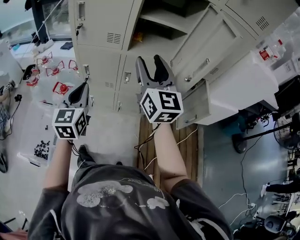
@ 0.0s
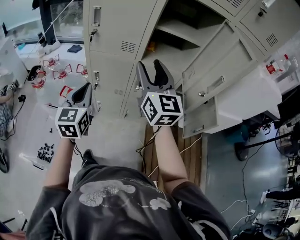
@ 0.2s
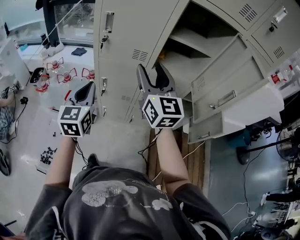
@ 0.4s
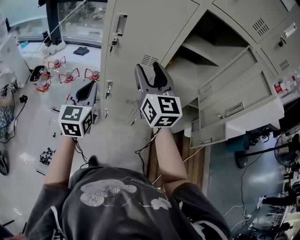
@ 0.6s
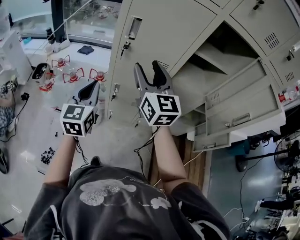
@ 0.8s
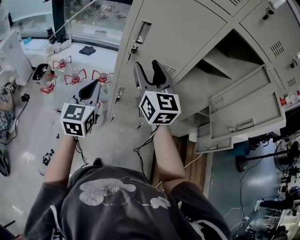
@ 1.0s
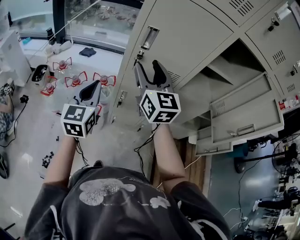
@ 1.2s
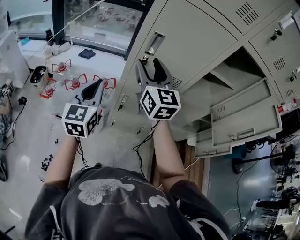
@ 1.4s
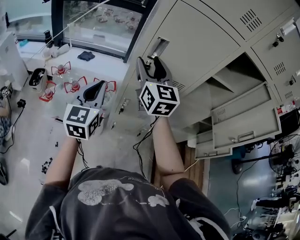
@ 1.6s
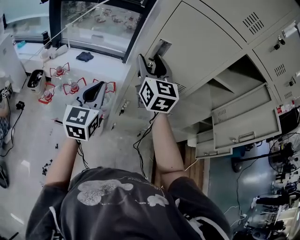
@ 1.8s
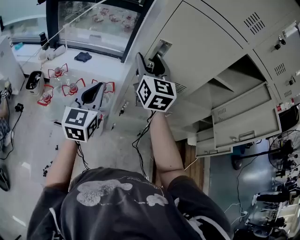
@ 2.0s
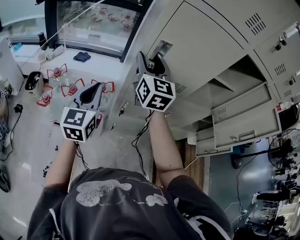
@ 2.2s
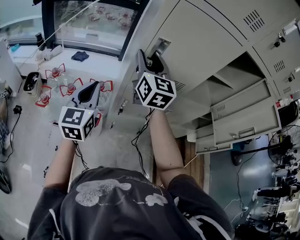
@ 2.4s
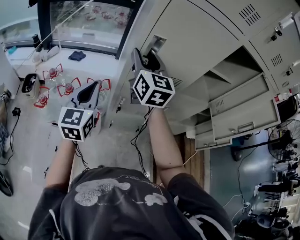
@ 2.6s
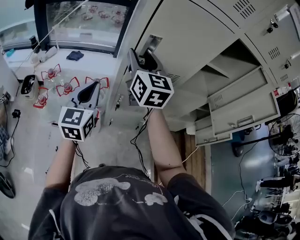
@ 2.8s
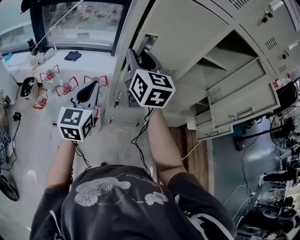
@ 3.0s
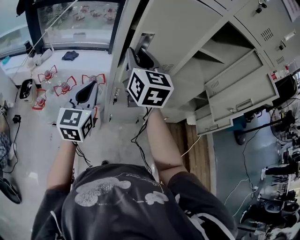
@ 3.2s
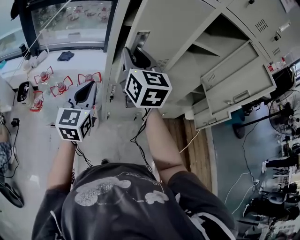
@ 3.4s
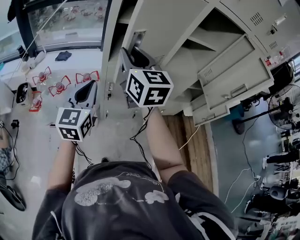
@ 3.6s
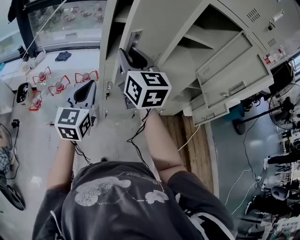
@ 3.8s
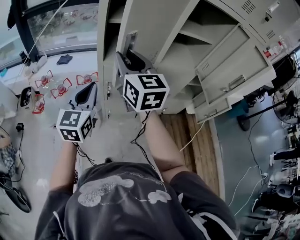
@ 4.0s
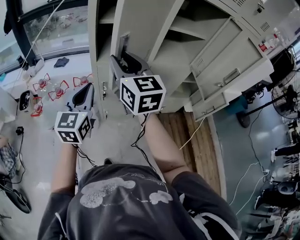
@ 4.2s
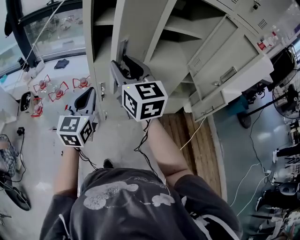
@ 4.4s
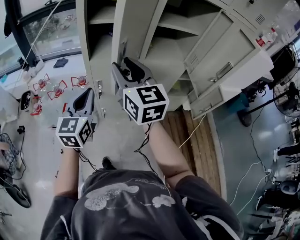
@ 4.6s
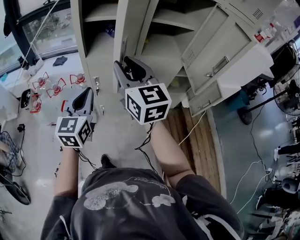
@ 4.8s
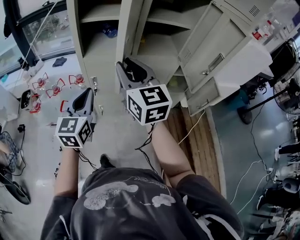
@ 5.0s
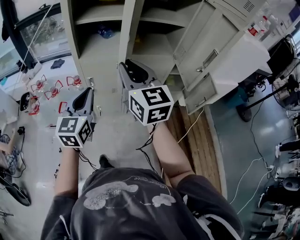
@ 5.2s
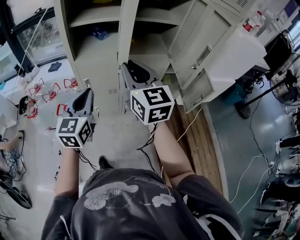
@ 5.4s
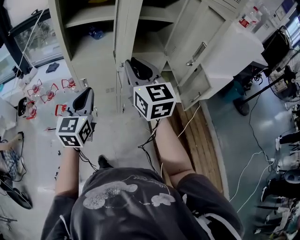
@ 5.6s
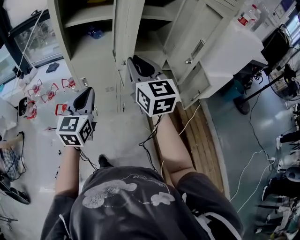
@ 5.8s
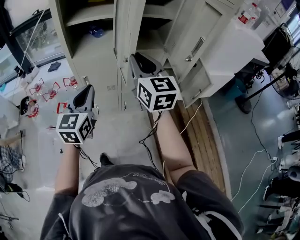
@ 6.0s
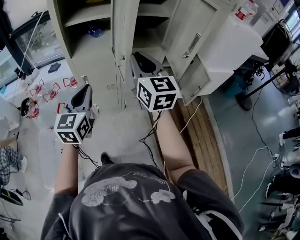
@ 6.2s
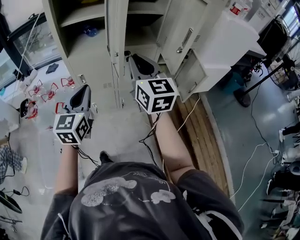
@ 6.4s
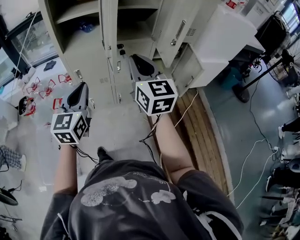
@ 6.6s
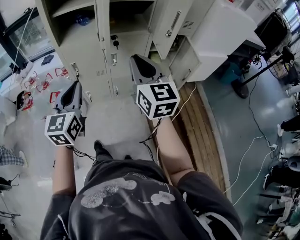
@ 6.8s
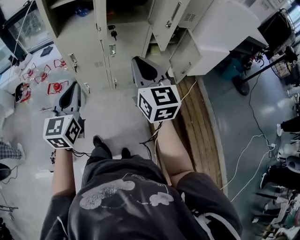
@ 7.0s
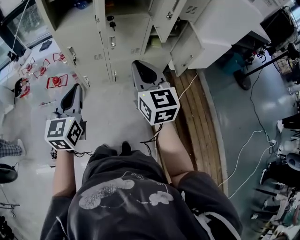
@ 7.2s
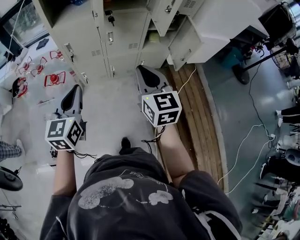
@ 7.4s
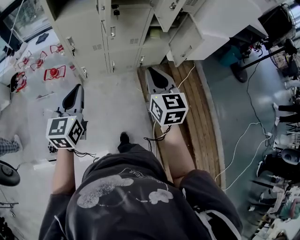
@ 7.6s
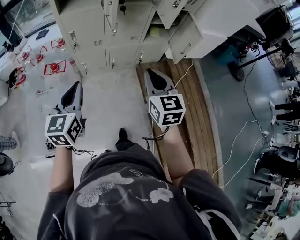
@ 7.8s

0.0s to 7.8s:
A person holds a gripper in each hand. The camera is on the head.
0.0s to 1.6s: Both grippers travel together to the left and forward, about 35 cm.
1.6s to 3.2s: The right gripper closes.
3.2s to 4.6s: The right gripper shifts approximately 15 cm backward and to the right. The left gripper moves to the right and backward, approximately 15 cm.
4.6s to 6.2s: The left gripper travels to the right and backward by about 10 cm. Meanwhile the right gripper shifts roughly 15 cm to the right.
6.2s to 7.8s: The left gripper travels backward and downward by roughly 20 cm; the right gripper shifts about 30 cm backward, downward and to the right.

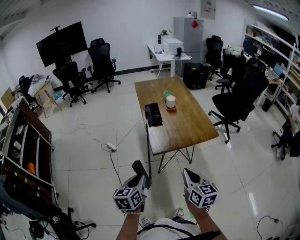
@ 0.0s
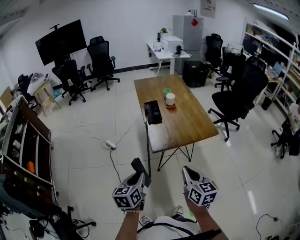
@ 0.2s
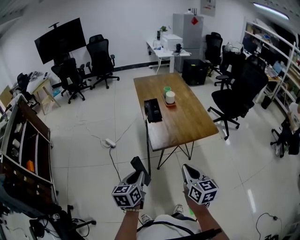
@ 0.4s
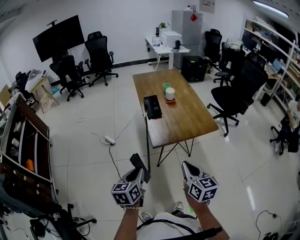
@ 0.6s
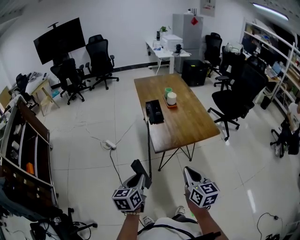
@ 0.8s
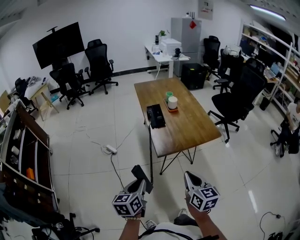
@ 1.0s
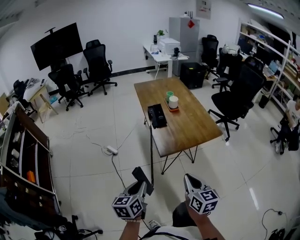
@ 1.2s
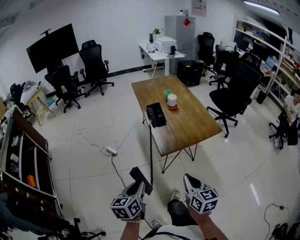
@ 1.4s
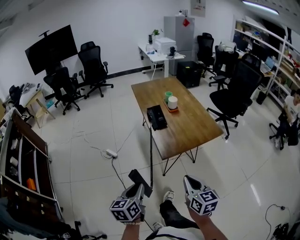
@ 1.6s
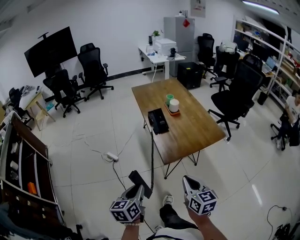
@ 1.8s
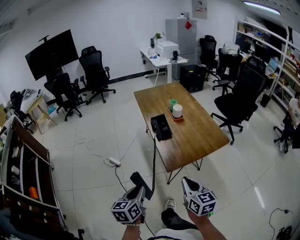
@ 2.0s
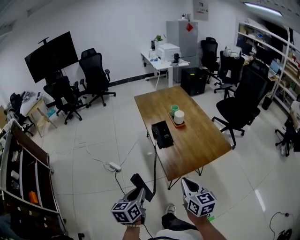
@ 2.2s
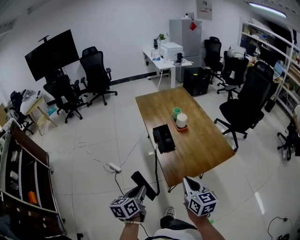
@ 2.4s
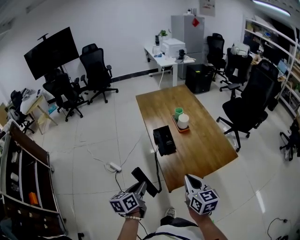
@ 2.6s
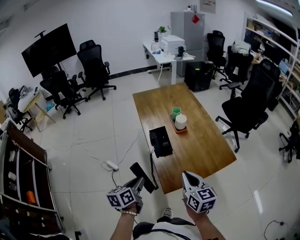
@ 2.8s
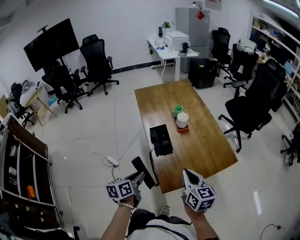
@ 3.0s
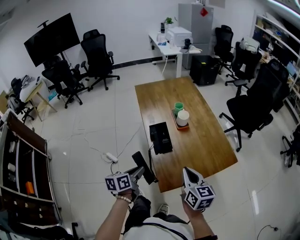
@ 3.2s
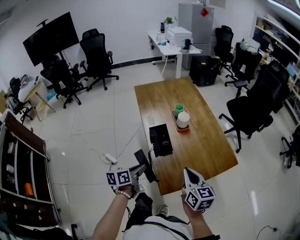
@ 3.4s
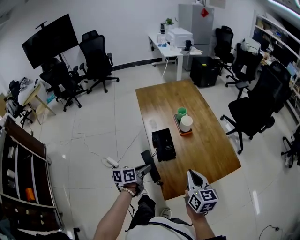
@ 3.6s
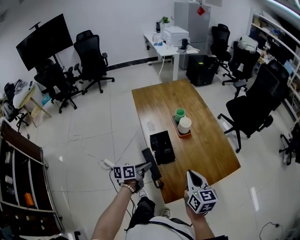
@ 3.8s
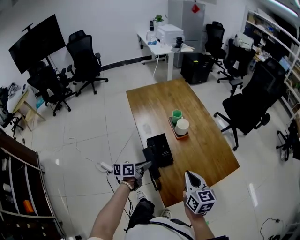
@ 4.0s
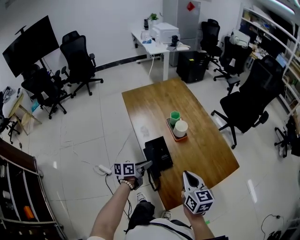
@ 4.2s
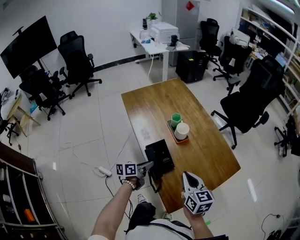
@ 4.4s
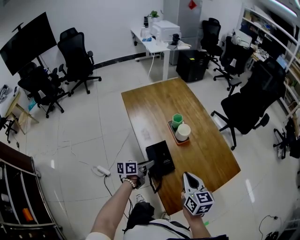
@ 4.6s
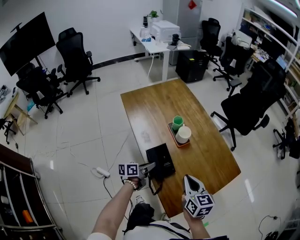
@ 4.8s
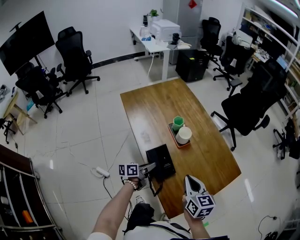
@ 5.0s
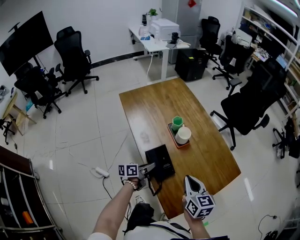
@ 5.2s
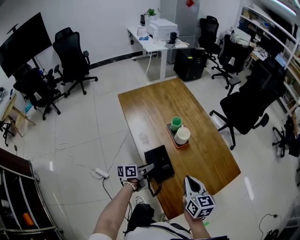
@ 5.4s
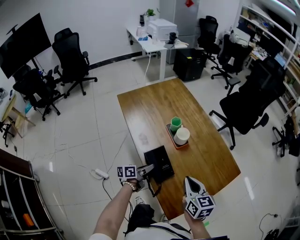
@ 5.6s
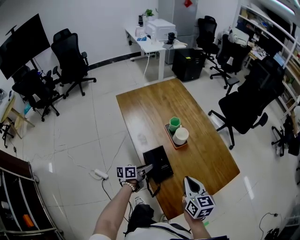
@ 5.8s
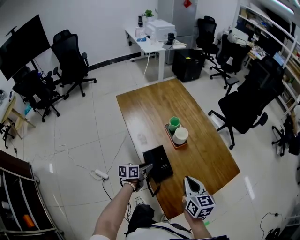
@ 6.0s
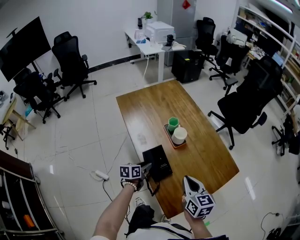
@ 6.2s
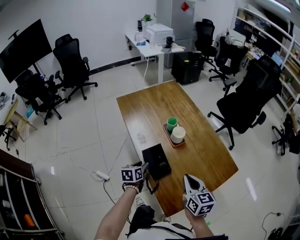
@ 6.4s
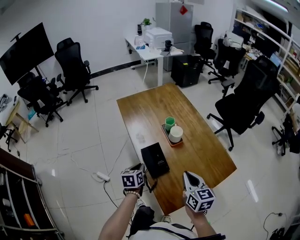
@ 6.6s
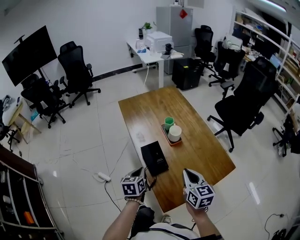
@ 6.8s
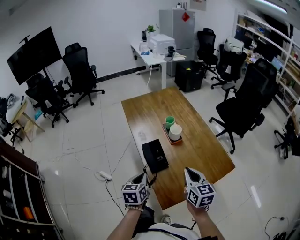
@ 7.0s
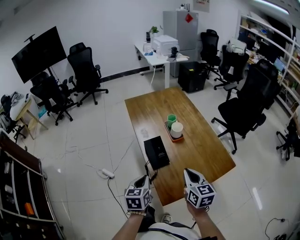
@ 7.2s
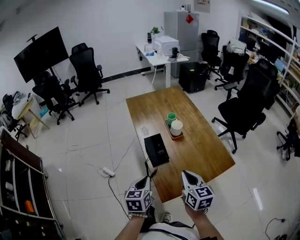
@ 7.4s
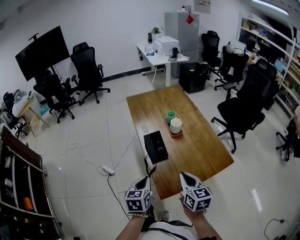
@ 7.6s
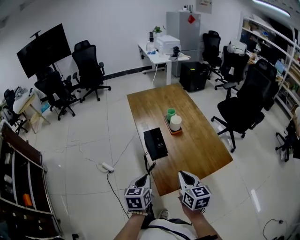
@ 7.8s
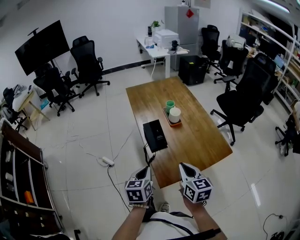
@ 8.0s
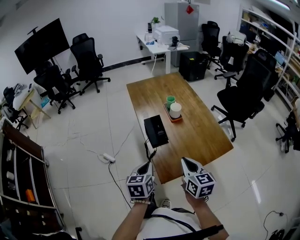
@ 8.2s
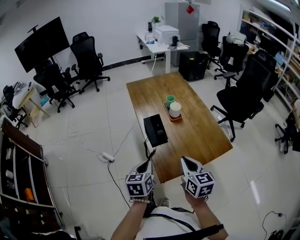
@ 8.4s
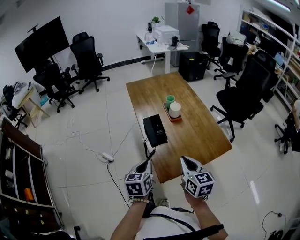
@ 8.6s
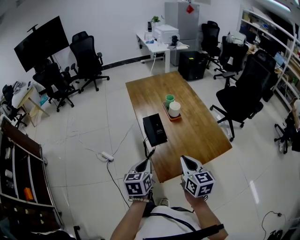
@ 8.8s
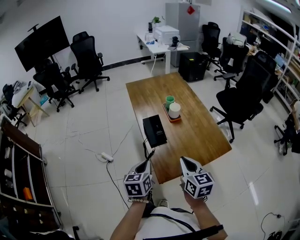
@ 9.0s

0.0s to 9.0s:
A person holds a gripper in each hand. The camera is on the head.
0.0s to 1.6s: The grippers both shift to the left by roughly 10 cm.
1.6s to 3.0s: The grippers both shift forward by approximately 30 cm.
3.0s to 4.4s: The right gripper goes approximately 10 cm forward. Meanwhile the left gripper heads forward and downward, covering approximately 25 cm, and changes its angle by some 30 degrees.
4.4s to 6.0s: The left gripper shifts by roughly 5 cm.
6.0s to 7.6s: The right gripper moves roughly 15 cm; the left gripper ends up some 30 cm from where it was, turns by approximately 40 degrees, and closes.
7.6s to 9.0s: The grippers move only a little.

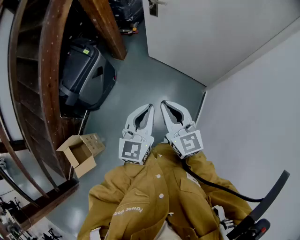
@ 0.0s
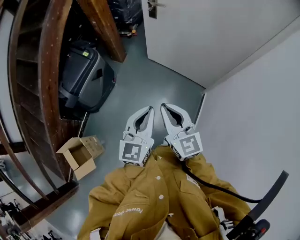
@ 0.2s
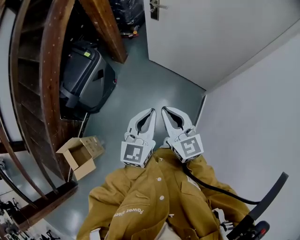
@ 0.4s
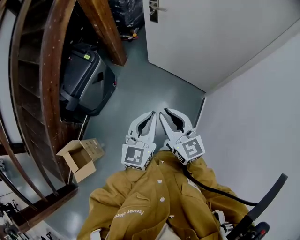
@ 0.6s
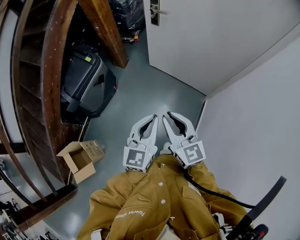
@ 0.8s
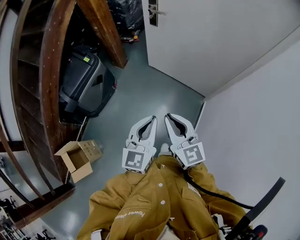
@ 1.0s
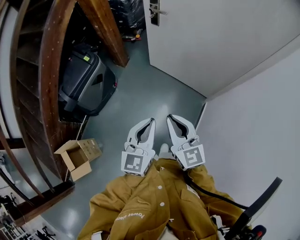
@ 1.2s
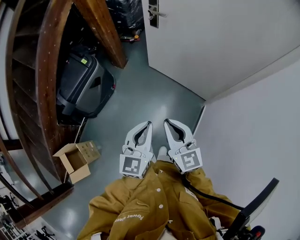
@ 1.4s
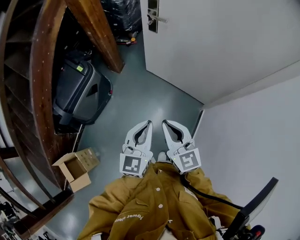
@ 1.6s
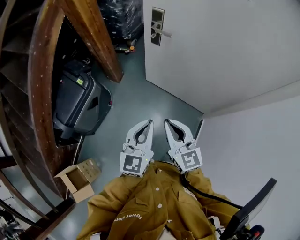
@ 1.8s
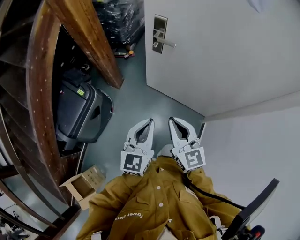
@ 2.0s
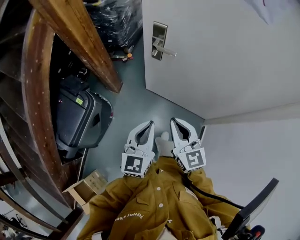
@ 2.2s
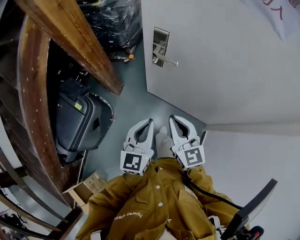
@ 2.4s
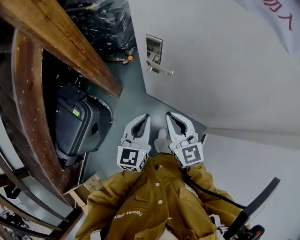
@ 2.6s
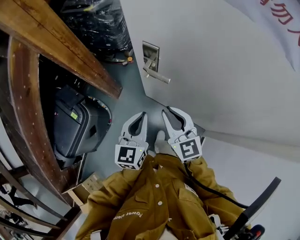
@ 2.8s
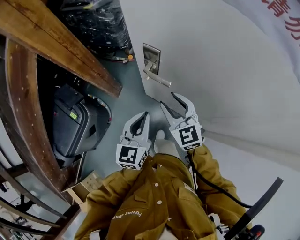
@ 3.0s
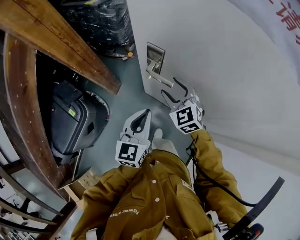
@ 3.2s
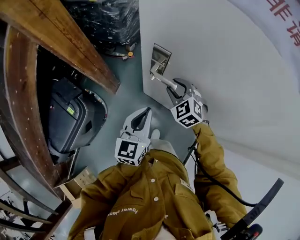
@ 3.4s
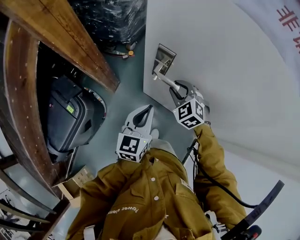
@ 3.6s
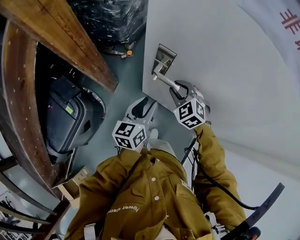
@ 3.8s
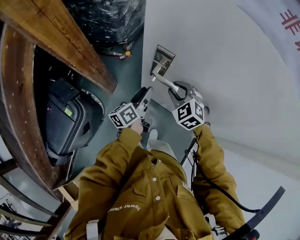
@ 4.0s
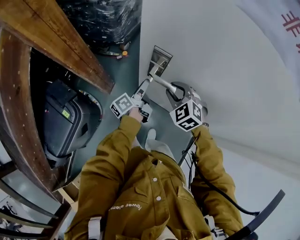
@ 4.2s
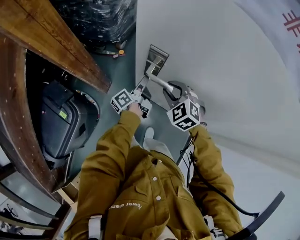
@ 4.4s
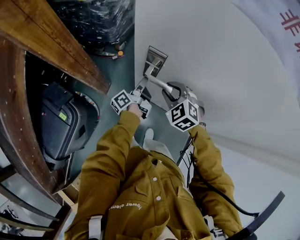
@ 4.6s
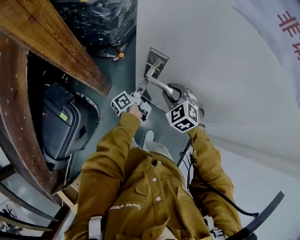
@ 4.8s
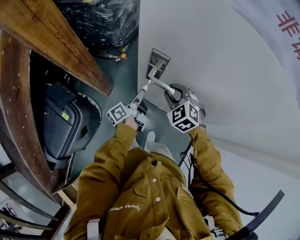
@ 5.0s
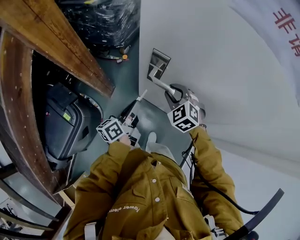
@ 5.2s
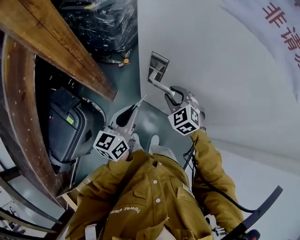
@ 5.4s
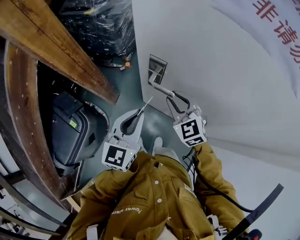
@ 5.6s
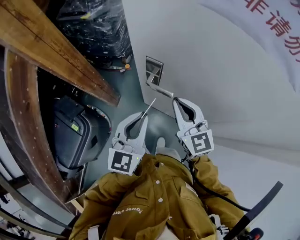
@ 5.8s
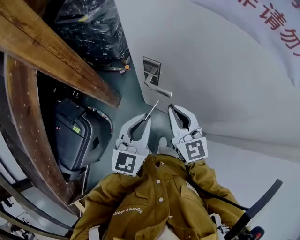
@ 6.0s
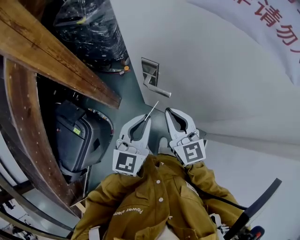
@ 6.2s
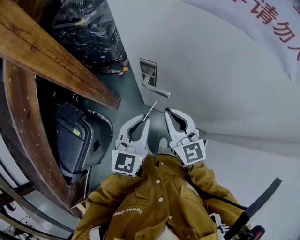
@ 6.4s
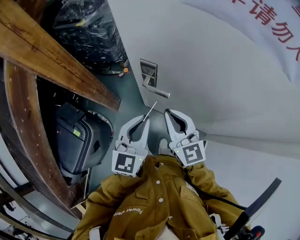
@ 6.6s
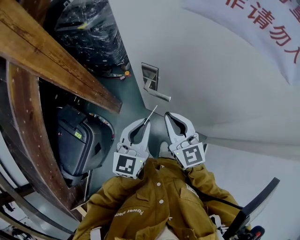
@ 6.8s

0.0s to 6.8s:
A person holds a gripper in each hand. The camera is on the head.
0.0s to 1.4s: The left gripper is displaced forward by approximately 5 cm. The right gripper goes some 5 cm to the right.
1.4s to 2.8s: The pair of grippers is taken forward, about 50 cm.
2.8s to 4.0s: Both grippers move forward and downward, roughly 15 cm. The left gripper rolls counterclockwise, seen from behind, by roughly 50 degrees, and opens; the right gripper tilts its fingers about 30 degrees downward, and opens, then closes once more.
4.0s to 5.4s: The left gripper heads upward and backward, covering about 15 cm, rotates about 30 degrees, and closes.
5.4s to 6.8s: The right gripper heads upward and backward, covering some 15 cm, points its fingers approximately 40 degrees further upward, and closes. Meanwhile the left gripper is displaced upward and to the right by about 10 cm, and swivels some 20 degrees.
